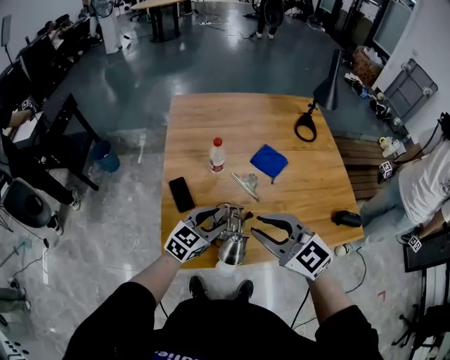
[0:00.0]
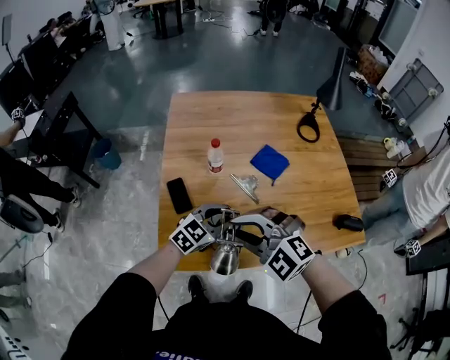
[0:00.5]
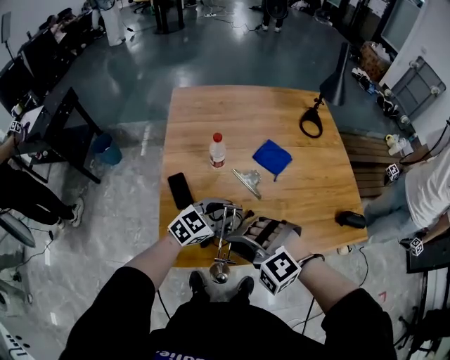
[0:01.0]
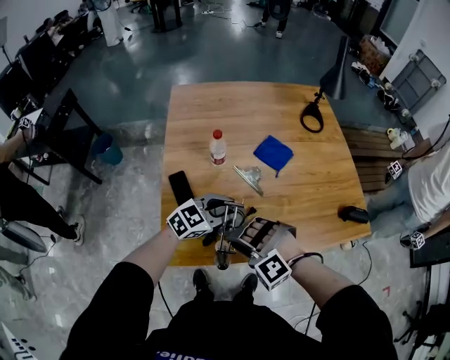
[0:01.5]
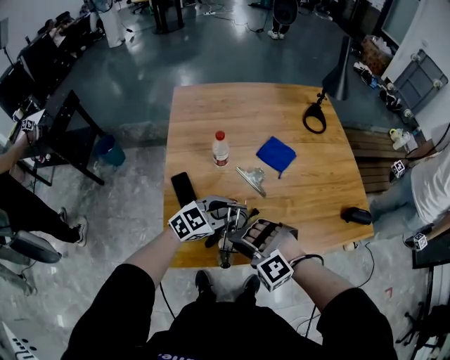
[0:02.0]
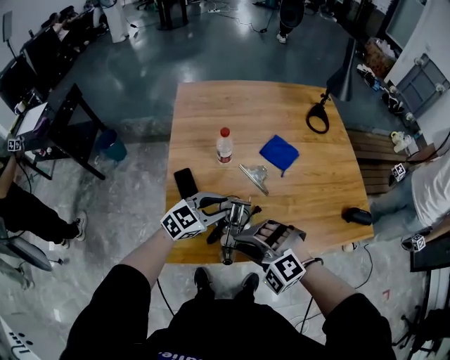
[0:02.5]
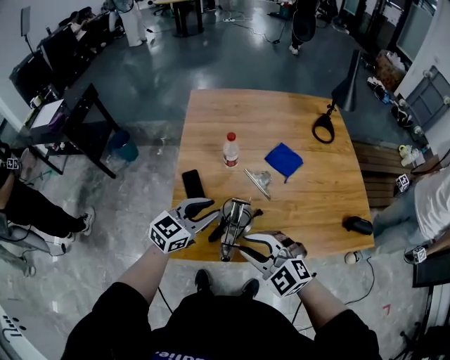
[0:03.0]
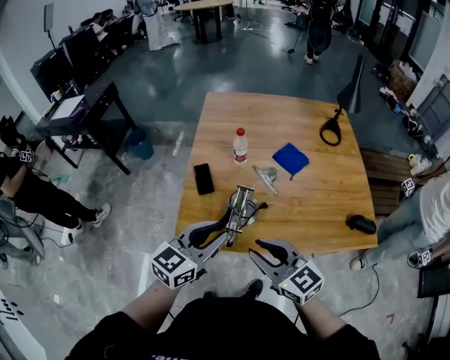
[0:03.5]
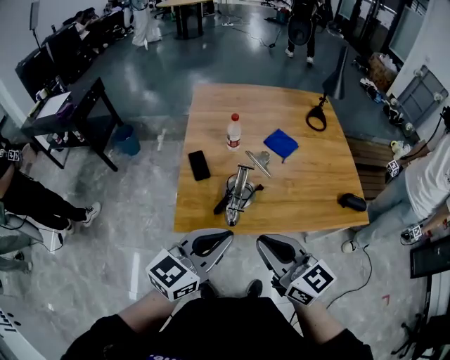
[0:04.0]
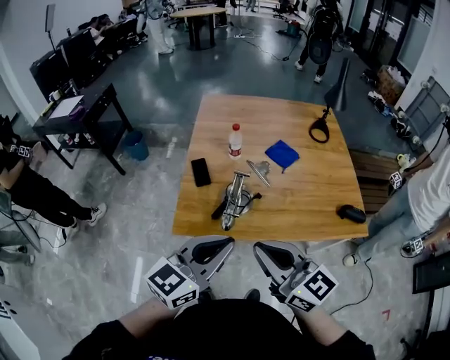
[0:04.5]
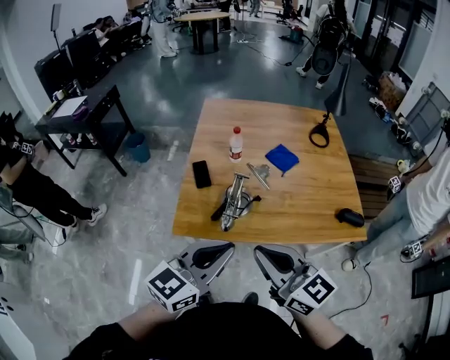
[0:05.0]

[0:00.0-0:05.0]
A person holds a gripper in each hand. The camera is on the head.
0:00.0 to 0:02.5: The right gripper moves downward and to the left, roughly 15 cm, and rolls counterclockwise, seen from behind, by about 50 degrees.
0:02.5 to 0:05.0: The left gripper is displaced backward and upward by approximately 35 cm, swivels about 30 degrees, and closes its fingers. The right gripper travels upward and backward by approximately 25 cm, rolls clockwise, seen from behind, by some 70 degrees, and closes its fingers.

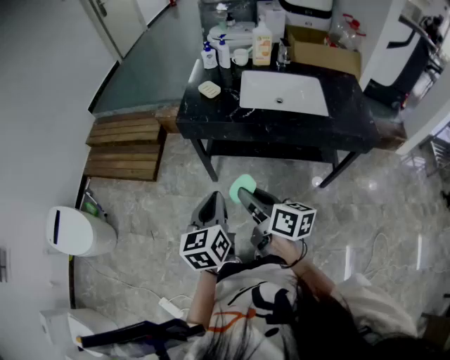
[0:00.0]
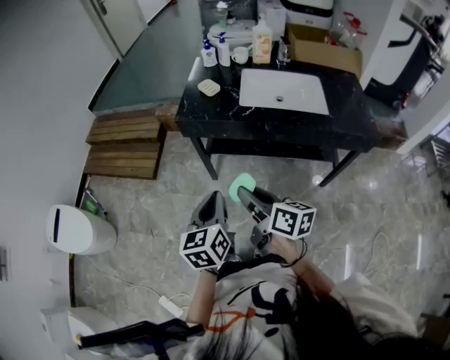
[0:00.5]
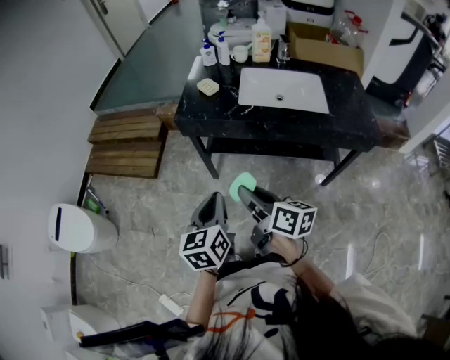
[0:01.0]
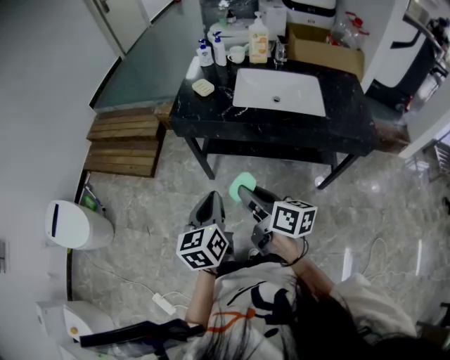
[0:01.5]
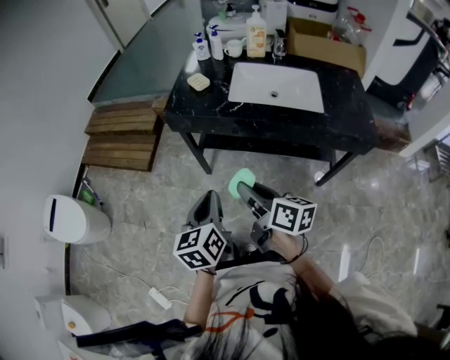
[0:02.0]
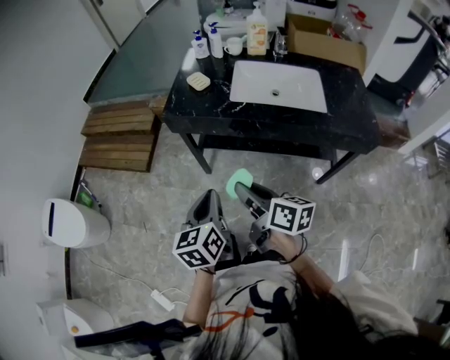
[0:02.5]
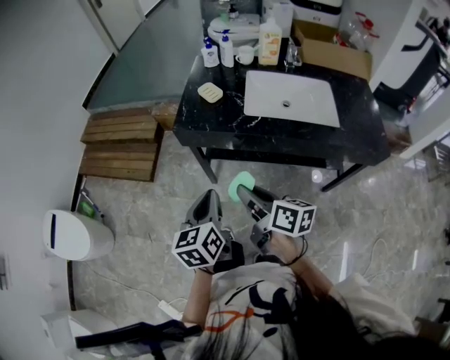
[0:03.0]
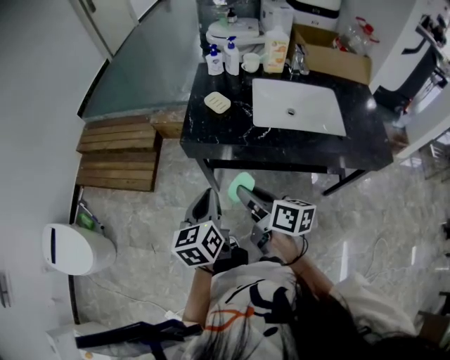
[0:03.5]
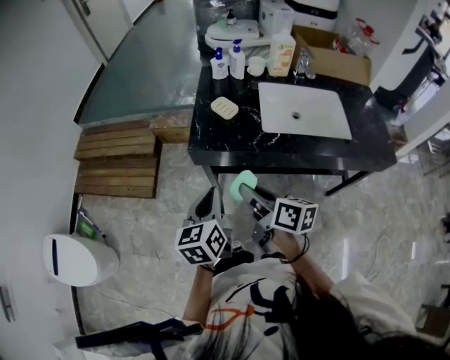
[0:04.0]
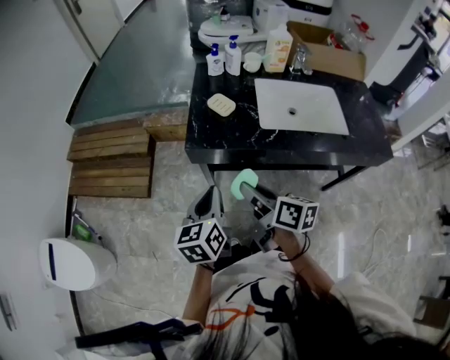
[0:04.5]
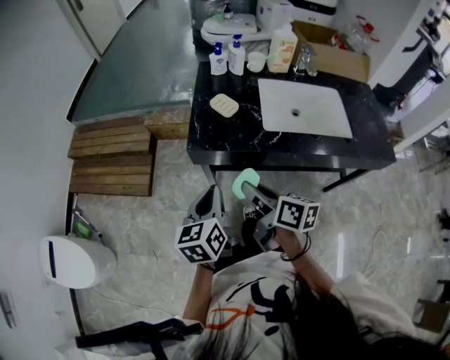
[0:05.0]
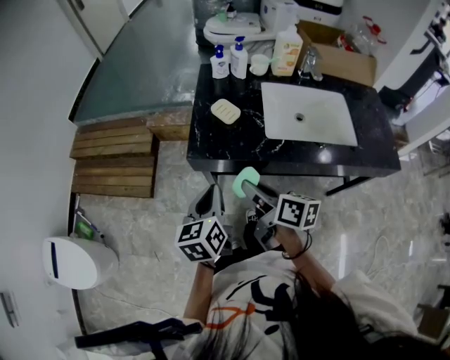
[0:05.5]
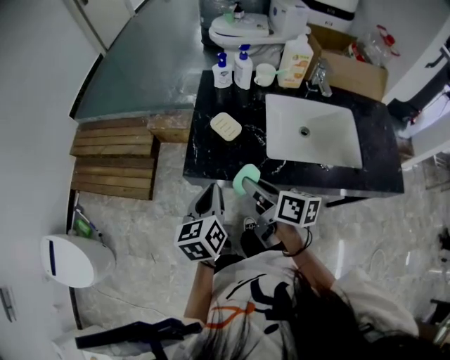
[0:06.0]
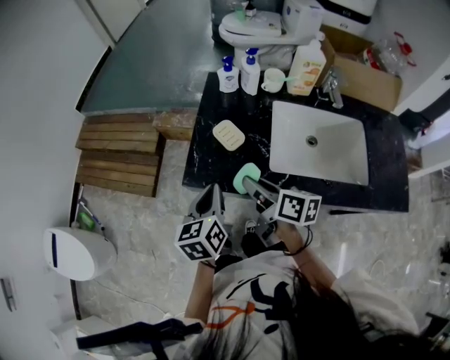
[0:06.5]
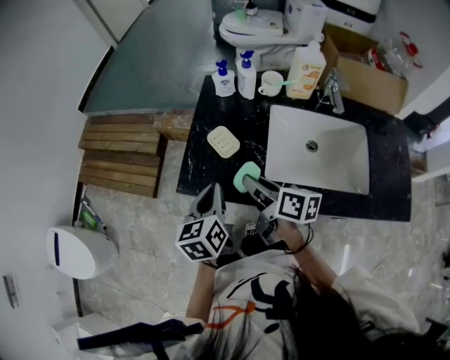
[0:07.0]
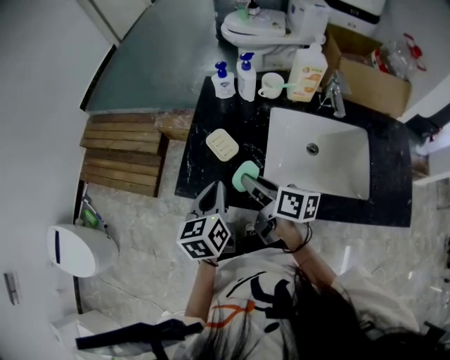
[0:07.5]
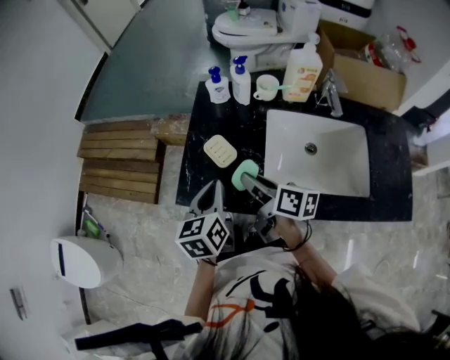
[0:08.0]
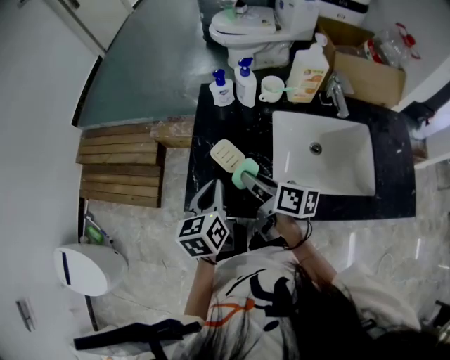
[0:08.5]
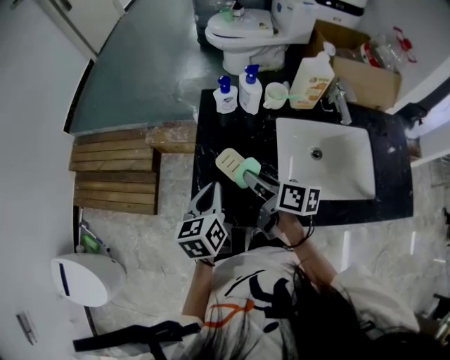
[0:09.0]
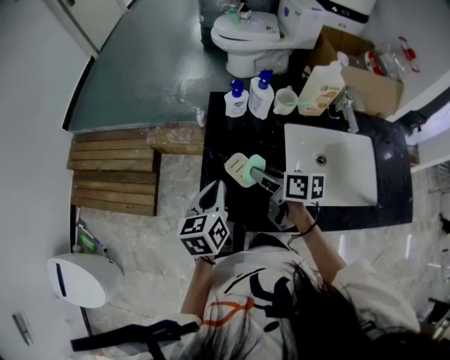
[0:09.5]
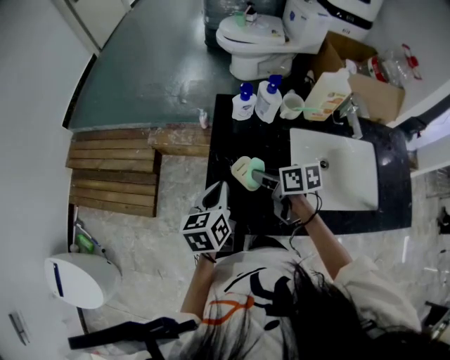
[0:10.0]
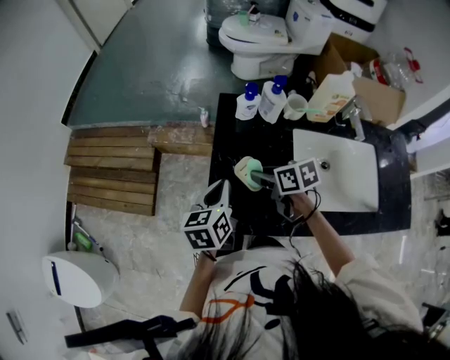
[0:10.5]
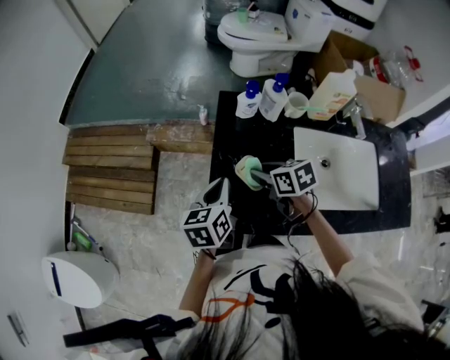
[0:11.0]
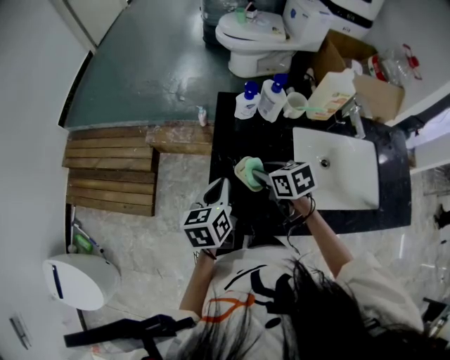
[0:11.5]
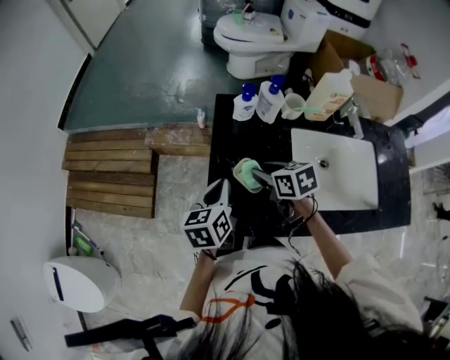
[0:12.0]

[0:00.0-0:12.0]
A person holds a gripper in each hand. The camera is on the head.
0:00.0 to 0:02.0: Both grippers travel together to the right, about 5 cm.
0:02.0 to 0:04.0: Both grippers travel together forward and to the left, some 25 cm.
0:04.0 to 0:06.0: The two grippers go about 15 cm forward.
0:06.0 to 0:08.0: Both grippers move forward and to the right, about 10 cm.
0:08.0 to 0:10.0: The left gripper moves forward and to the left, about 10 cm, while the right gripper heads forward and downward, covering some 10 cm, and swivels roughly 20 degrees.

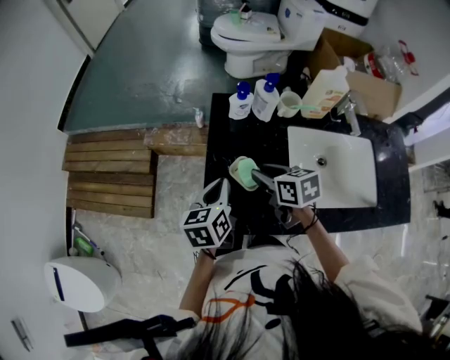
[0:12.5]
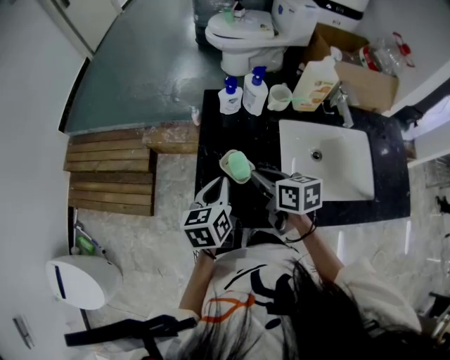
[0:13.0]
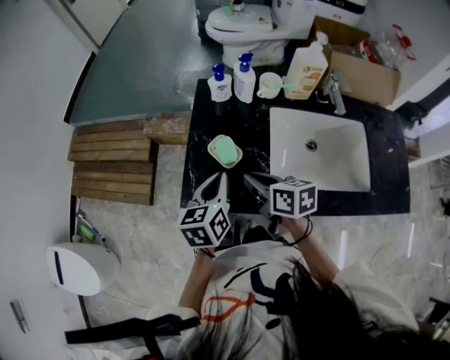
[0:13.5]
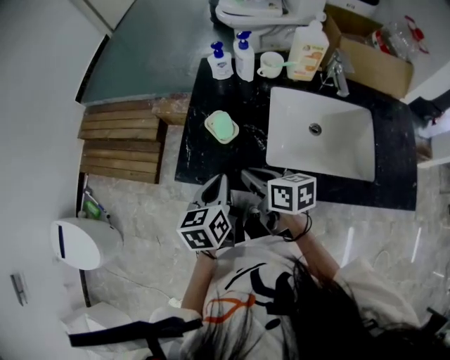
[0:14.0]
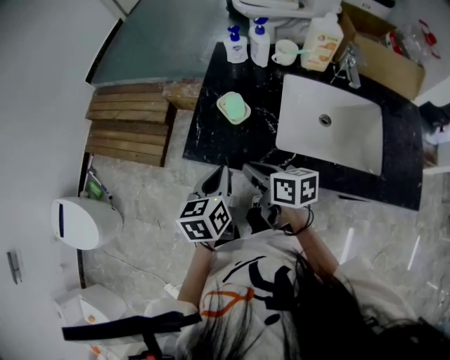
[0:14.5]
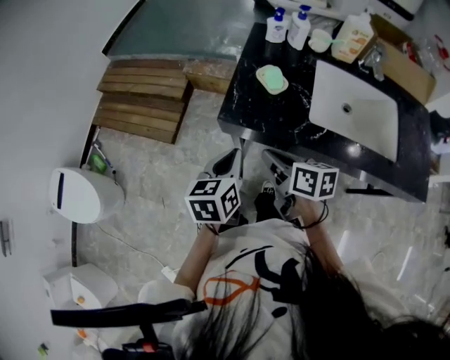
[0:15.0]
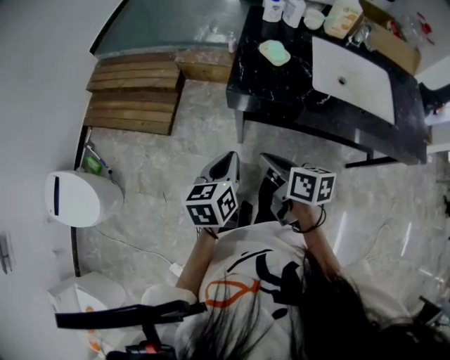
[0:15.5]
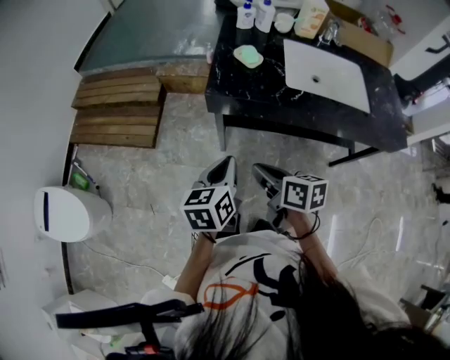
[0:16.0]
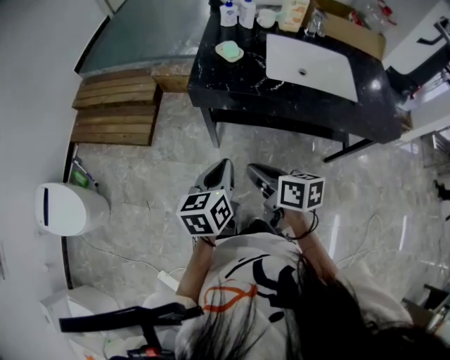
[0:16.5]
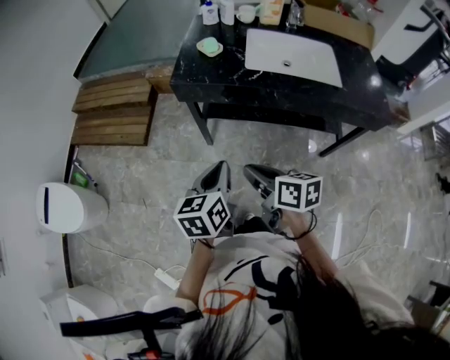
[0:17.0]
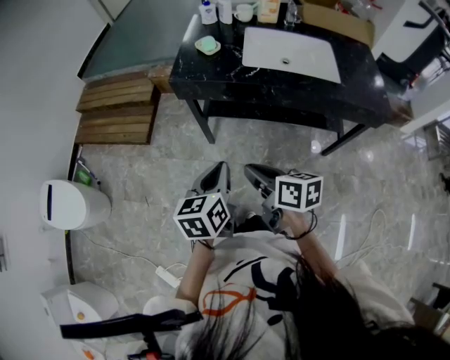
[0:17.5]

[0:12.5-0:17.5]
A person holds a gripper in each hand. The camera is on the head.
0:12.5 to 0:15.0: The two grippers go some 25 cm backward. The right gripper closes up.
0:15.0 to 0:17.5: The grippers both shift backward by roughly 30 cm.

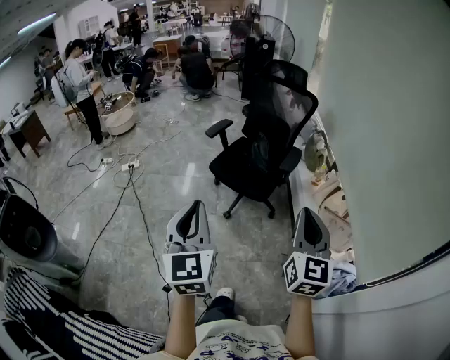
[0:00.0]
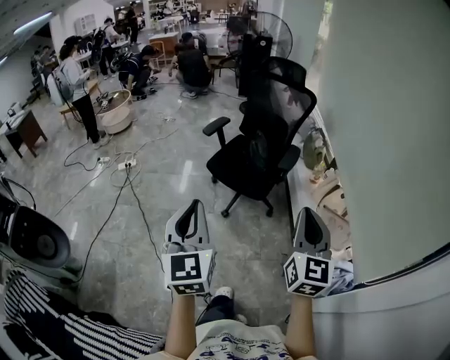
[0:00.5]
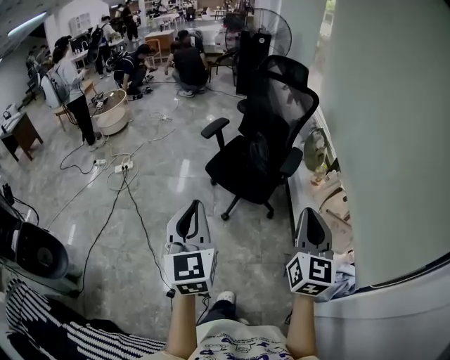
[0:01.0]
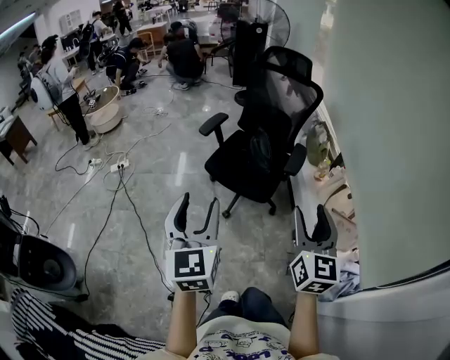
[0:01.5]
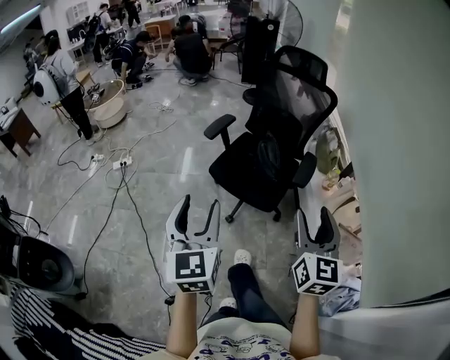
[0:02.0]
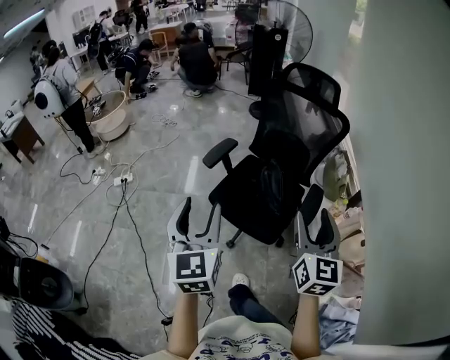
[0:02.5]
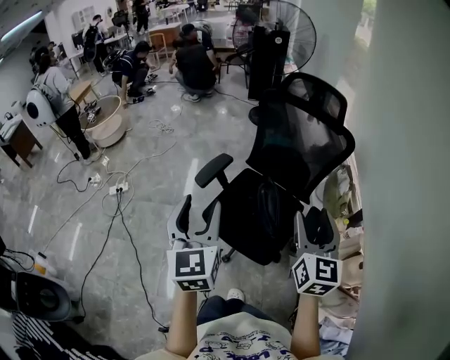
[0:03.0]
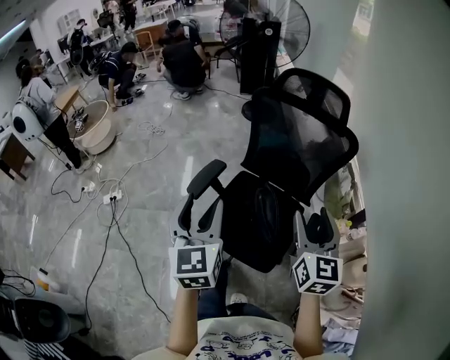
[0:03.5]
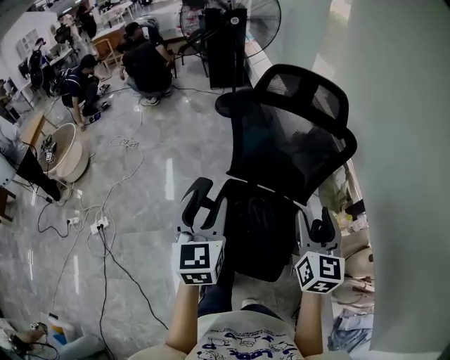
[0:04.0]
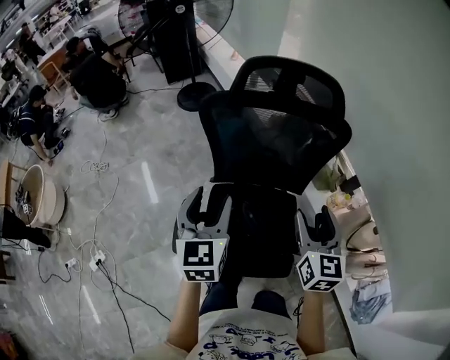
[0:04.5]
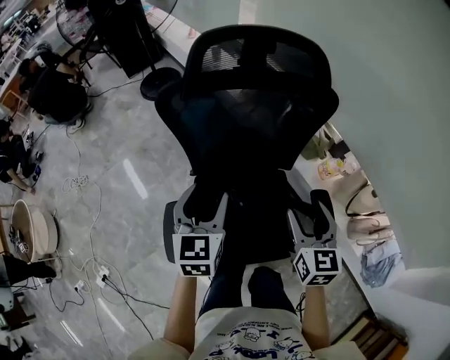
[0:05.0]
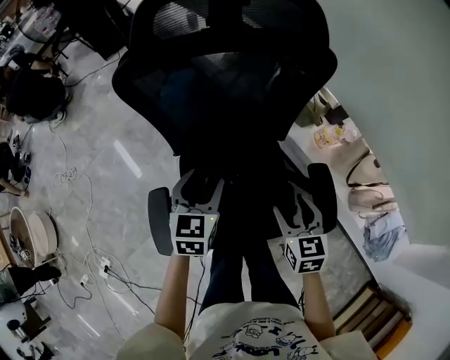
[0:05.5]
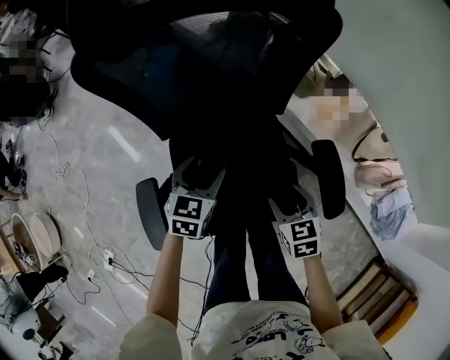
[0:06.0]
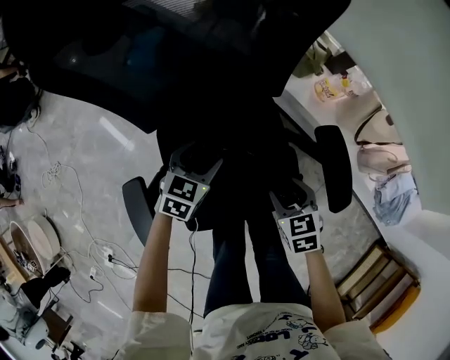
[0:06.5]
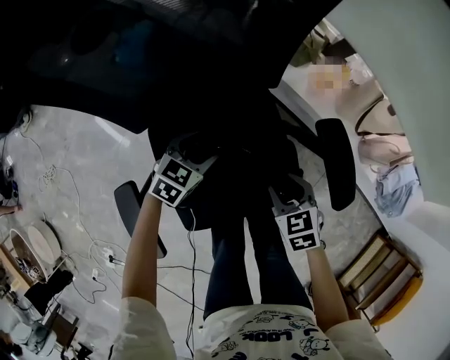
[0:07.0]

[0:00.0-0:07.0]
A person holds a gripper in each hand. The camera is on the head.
0:00.0 to 0:02.0: Both grippers travel together forward, about 25 cm. The right gripper opens its fingers. The left gripper opens.
0:02.0 to 0:03.5: The pair of grippers is taken forward, approximately 40 cm.
0:03.5 to 0:05.0: The right gripper shifts by approximately 25 cm, and rotates some 30 degrees, while the left gripper changes place by about 40 cm, and changes its angle by roughly 50 degrees.
0:05.0 to 0:07.0: The grippers both shift downward by approximately 35 cm. The left gripper swivels roughly 50 degrees. The right gripper angles its fingers downward, by about 30 degrees, and closes.
